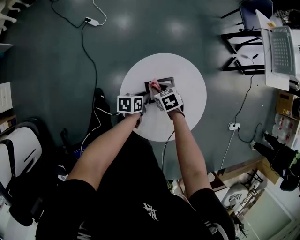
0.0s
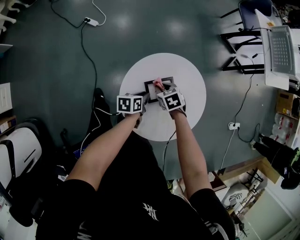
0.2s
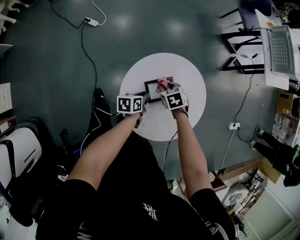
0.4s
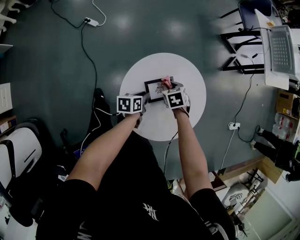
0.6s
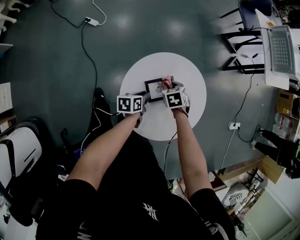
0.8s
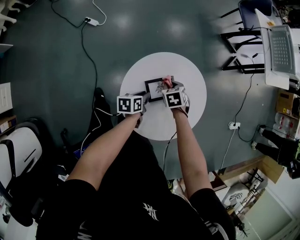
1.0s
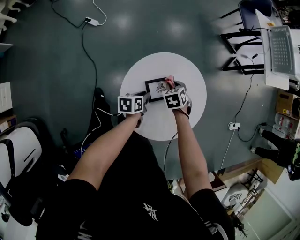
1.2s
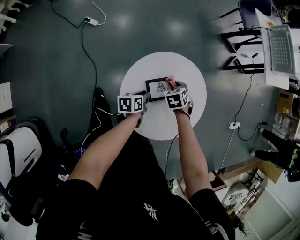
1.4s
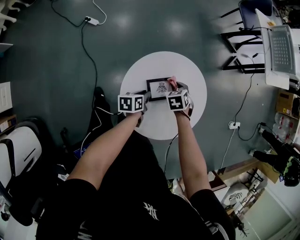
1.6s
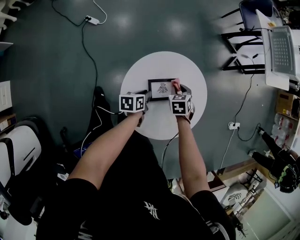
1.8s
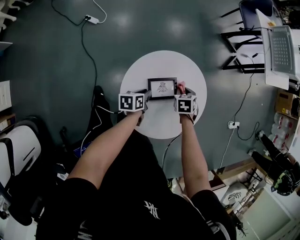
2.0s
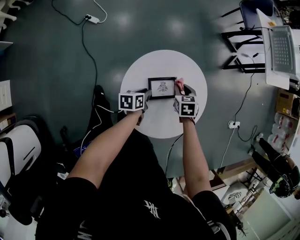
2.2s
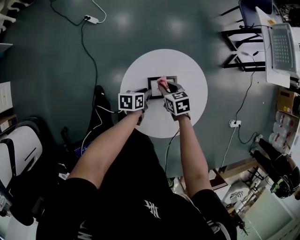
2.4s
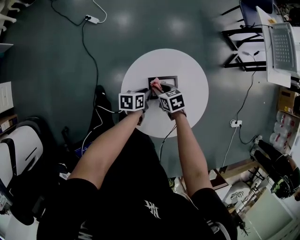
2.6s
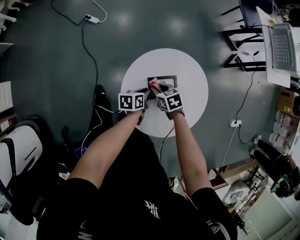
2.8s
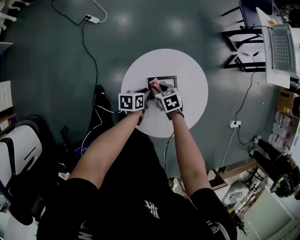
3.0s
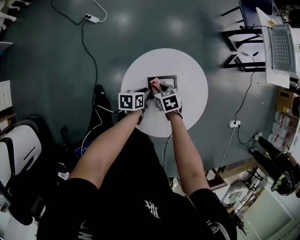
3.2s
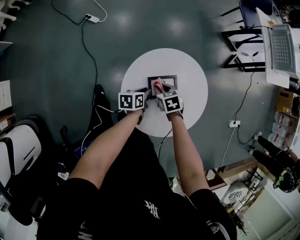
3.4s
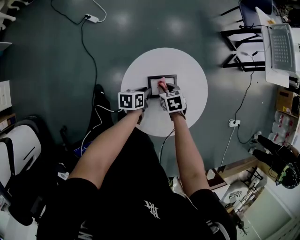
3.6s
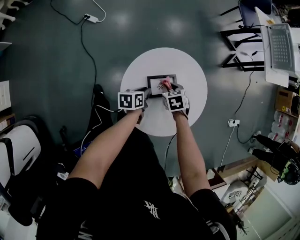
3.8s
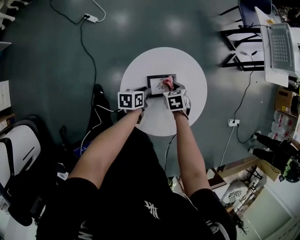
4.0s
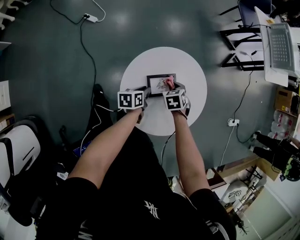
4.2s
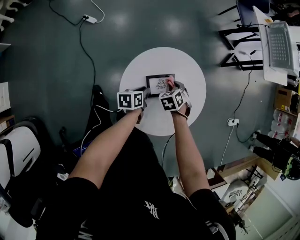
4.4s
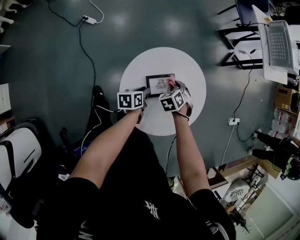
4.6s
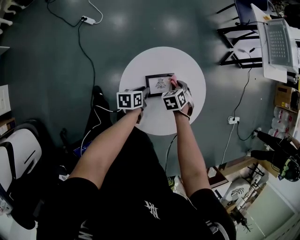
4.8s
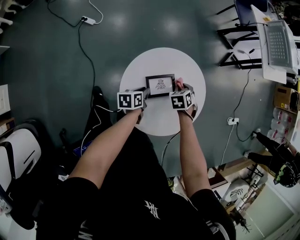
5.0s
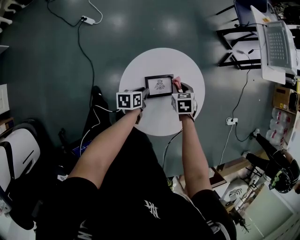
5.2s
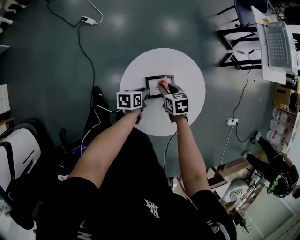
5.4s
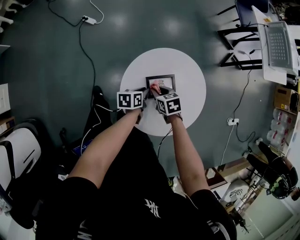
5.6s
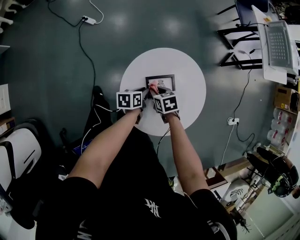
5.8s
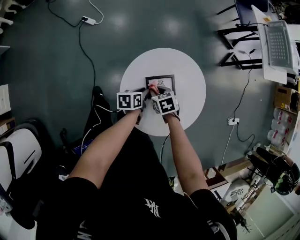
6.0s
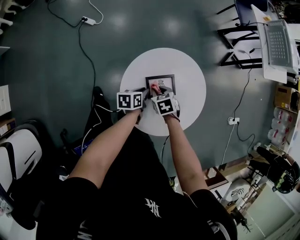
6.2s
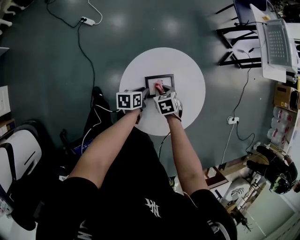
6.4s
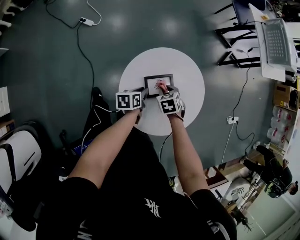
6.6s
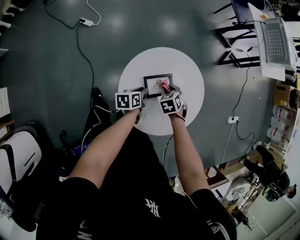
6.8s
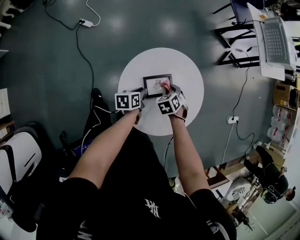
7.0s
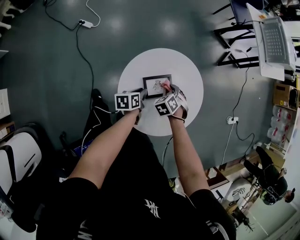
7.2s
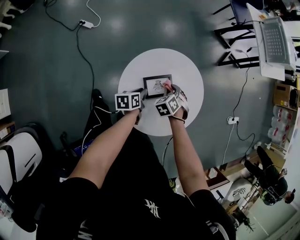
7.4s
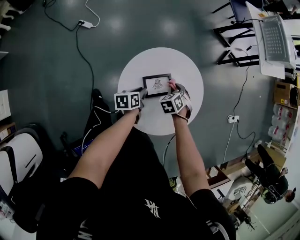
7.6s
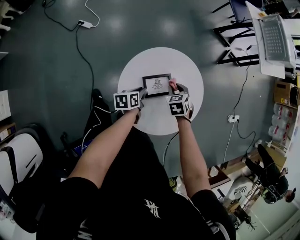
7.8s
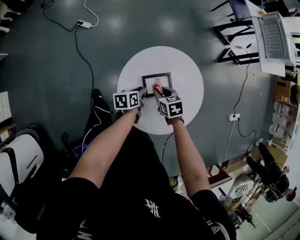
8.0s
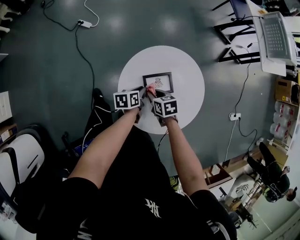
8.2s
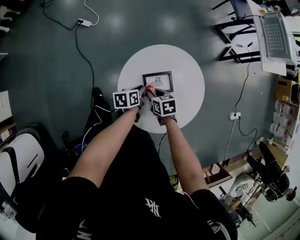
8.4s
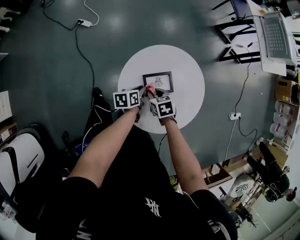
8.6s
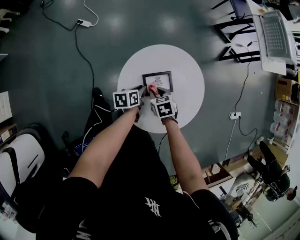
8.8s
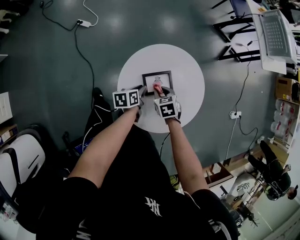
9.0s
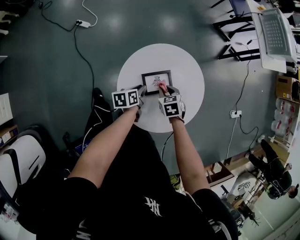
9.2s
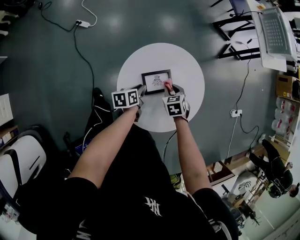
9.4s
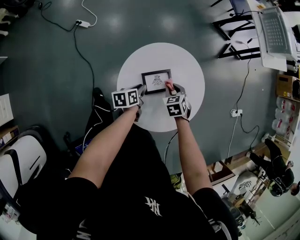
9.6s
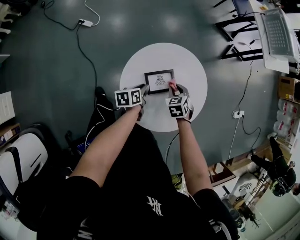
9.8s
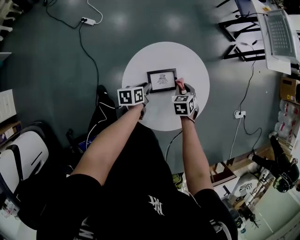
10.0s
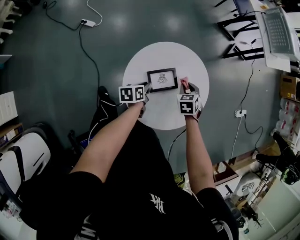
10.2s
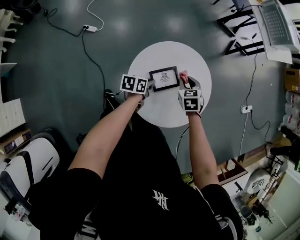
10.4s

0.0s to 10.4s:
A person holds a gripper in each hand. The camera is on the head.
0.0s to 1.4s: The right gripper heads to the right, covering roughly 10 cm, and turns by approximately 20 degrees.
1.4s to 3.0s: The right gripper ends up approximately 10 cm from where it was, and turns by roughly 20 degrees.
3.0s to 4.4s: The right gripper ends up approximately 10 cm from where it was, and changes its angle by approximately 30 degrees.
4.4s to 6.0s: The right gripper changes place by about 10 cm, and changes its angle by some 30 degrees.
6.0s to 7.4s: The right gripper ends up roughly 10 cm from where it was, and turns by some 40 degrees.
7.4s to 9.0s: The right gripper turns by some 30 degrees.
9.0s to 10.4s: The right gripper goes roughly 10 cm upward, forward and to the right. The left gripper changes its angle by some 20 degrees.

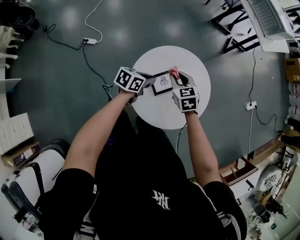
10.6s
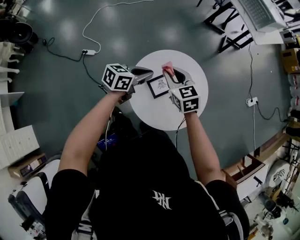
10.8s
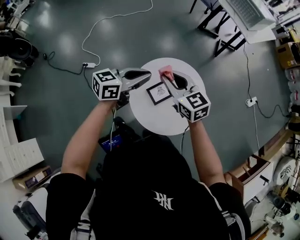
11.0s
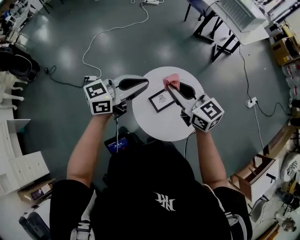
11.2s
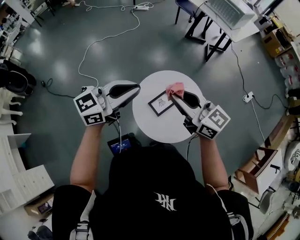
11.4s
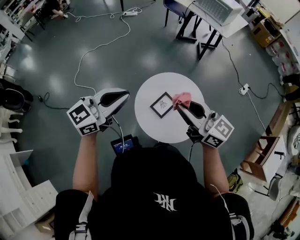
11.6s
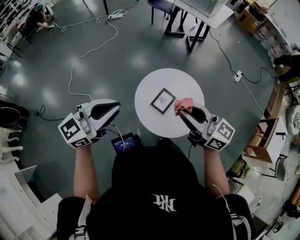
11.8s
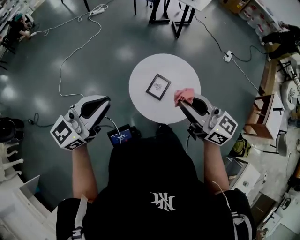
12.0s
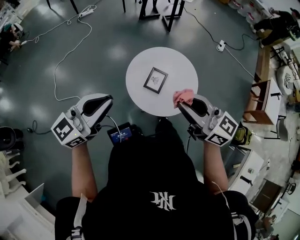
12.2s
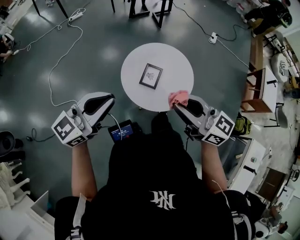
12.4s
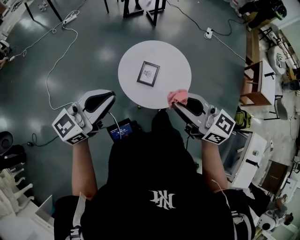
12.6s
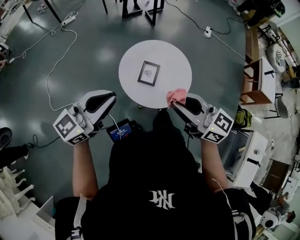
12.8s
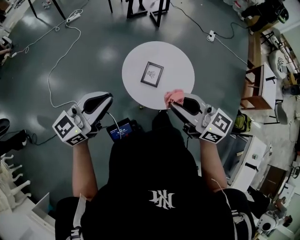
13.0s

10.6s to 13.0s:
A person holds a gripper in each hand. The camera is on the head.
10.6s to 11.8s: The left gripper goes some 40 cm upward, and angles its fingers upward, by some 40 degrees, while the right gripper is displaced upward and backward by roughly 40 cm, and tilts its fingers about 50 degrees upward.
11.8s to 13.0s: The right gripper travels backward by approximately 10 cm, while the left gripper changes place by some 5 cm.

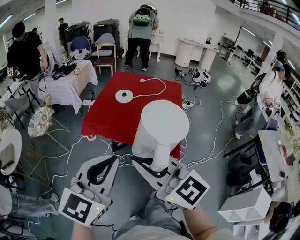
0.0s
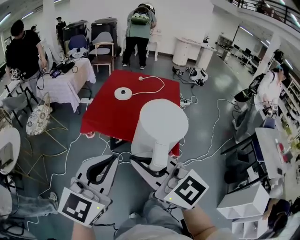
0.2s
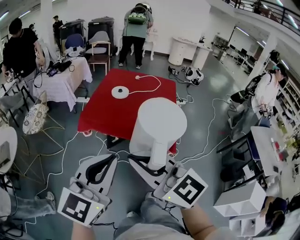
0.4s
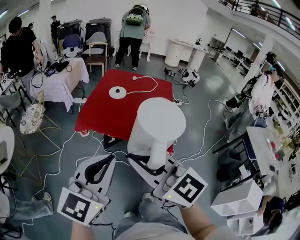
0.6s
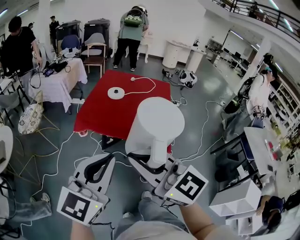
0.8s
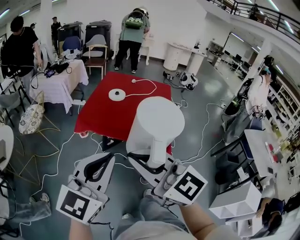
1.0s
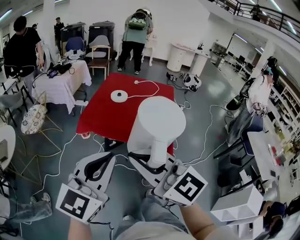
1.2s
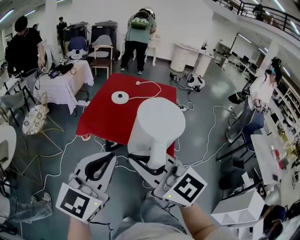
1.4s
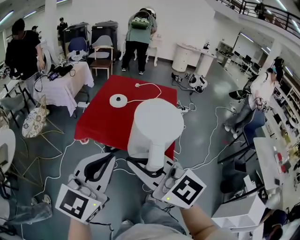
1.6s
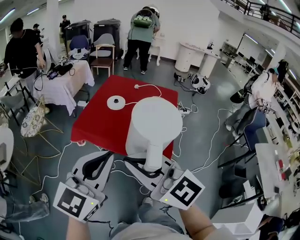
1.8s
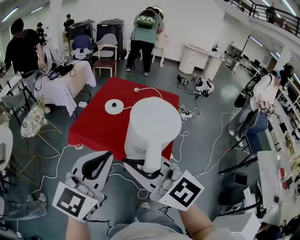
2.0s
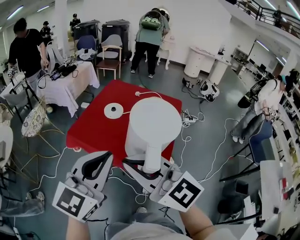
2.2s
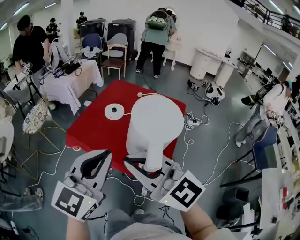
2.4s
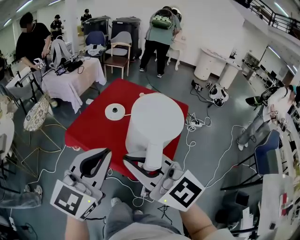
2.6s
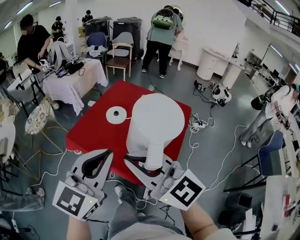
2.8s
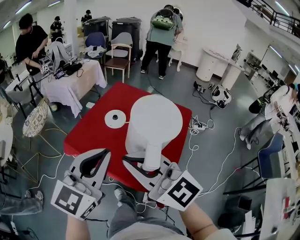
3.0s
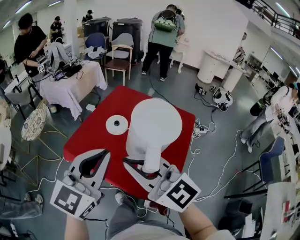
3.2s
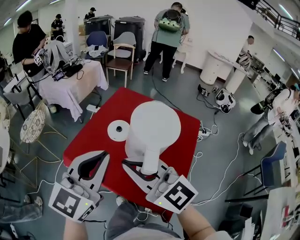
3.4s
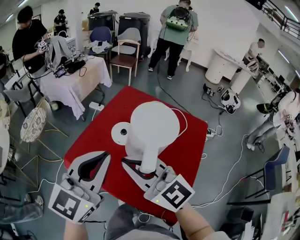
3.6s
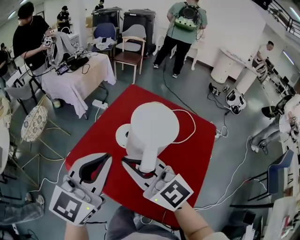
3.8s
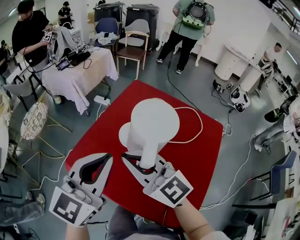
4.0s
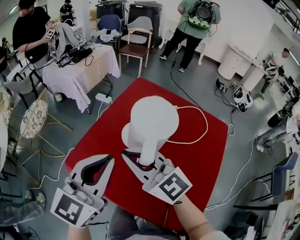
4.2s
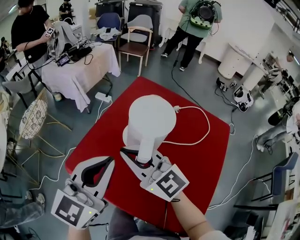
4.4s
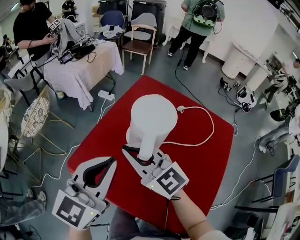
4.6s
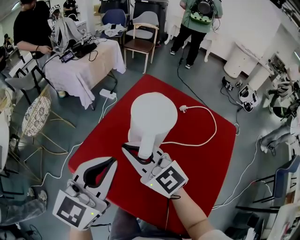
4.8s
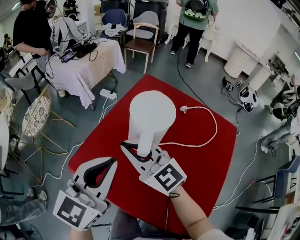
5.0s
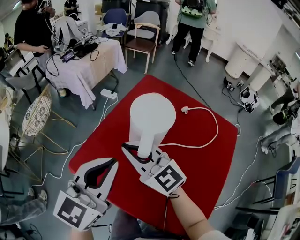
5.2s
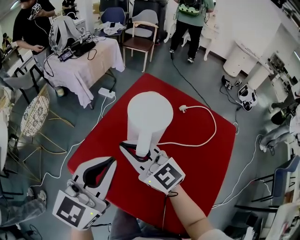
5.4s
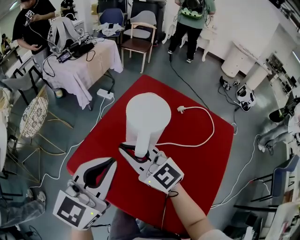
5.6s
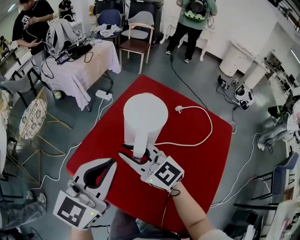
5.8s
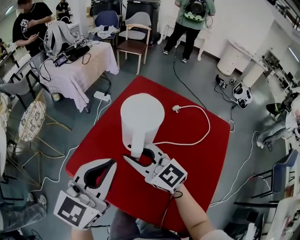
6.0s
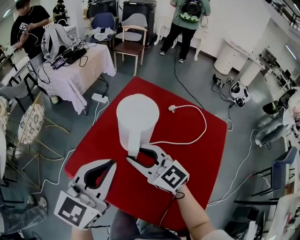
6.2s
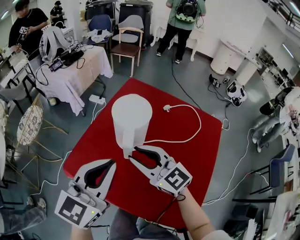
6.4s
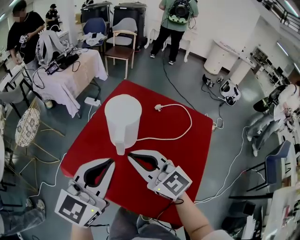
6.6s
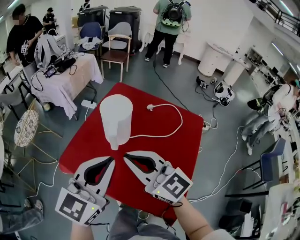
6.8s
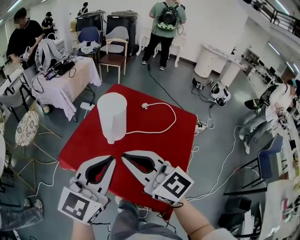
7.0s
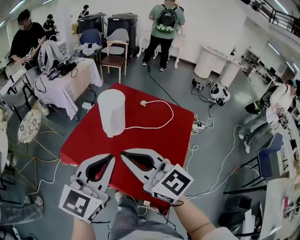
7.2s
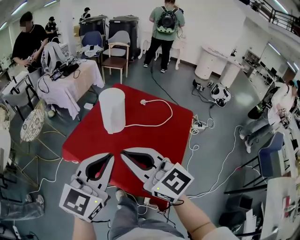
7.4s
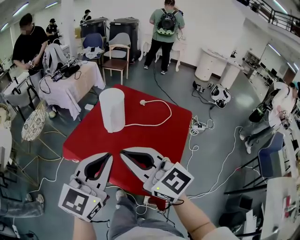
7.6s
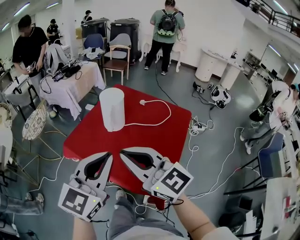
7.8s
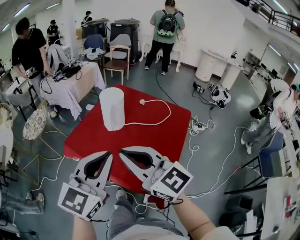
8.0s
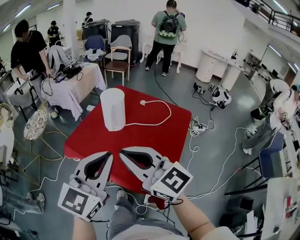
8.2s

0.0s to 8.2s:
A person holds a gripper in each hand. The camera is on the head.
0.0s to 1.6s: The grippers move only a little.
1.6s to 3.2s: Both grippers move forward and to the right, roughly 30 cm.
3.2s to 5.0s: The two grippers go some 30 cm forward and downward.
5.0s to 6.6s: The left gripper ends up about 10 cm from where it was, while the right gripper travels backward and to the right by about 10 cm, and opens, then closes once more.
6.6s to 8.2s: The left gripper travels backward by about 20 cm. The right gripper moves backward and upward, about 25 cm.

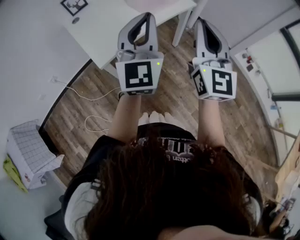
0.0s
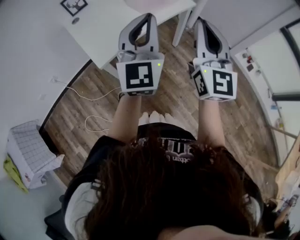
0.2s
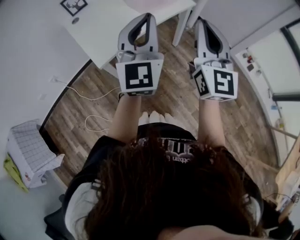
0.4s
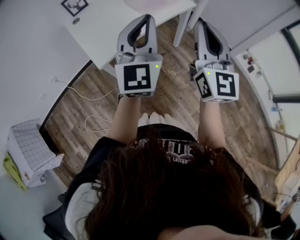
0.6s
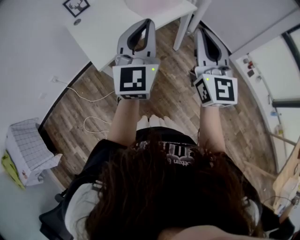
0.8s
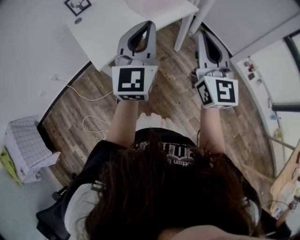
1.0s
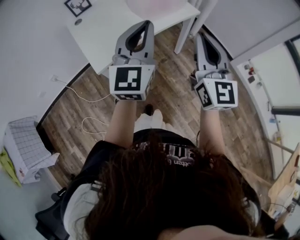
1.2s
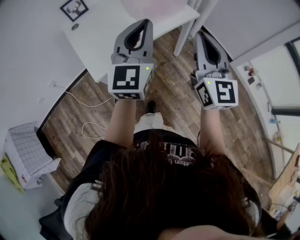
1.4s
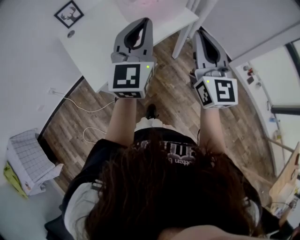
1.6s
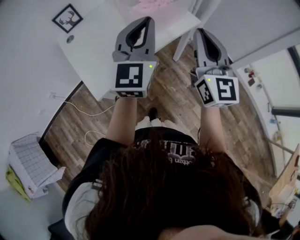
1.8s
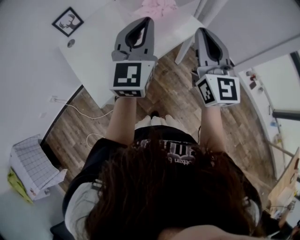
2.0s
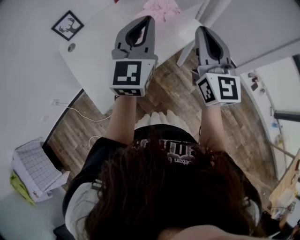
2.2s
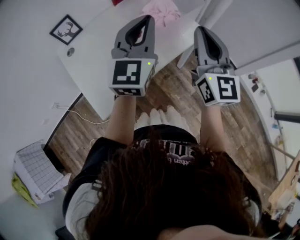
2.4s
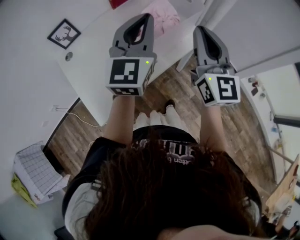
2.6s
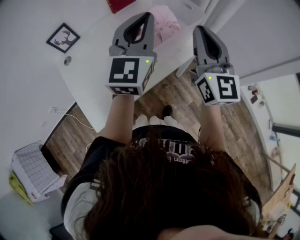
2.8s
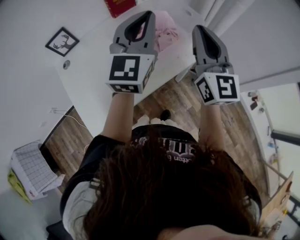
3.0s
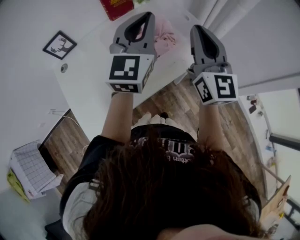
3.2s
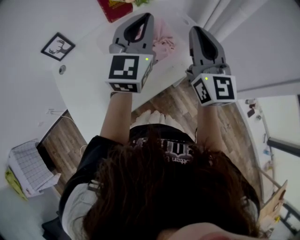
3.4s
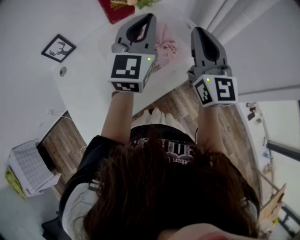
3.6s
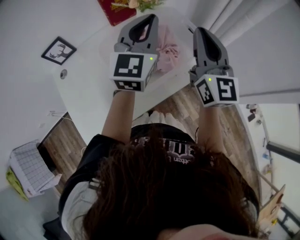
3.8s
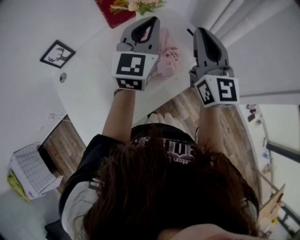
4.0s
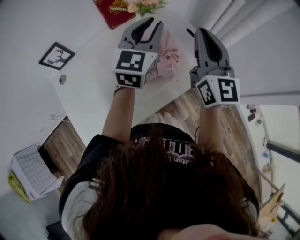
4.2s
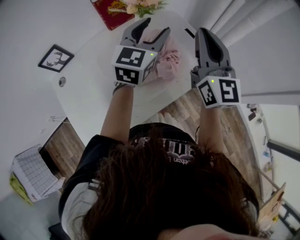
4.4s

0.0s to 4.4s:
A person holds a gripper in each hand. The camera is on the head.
0.0s to 1.4s: The grippers both shift forward by approximately 5 cm.
1.4s to 3.0s: Both grippers travel together forward, approximately 30 cm.
3.0s to 4.4s: The right gripper moves forward, roughly 15 cm; the left gripper goes roughly 20 cm forward and downward, and opens its fingers.
